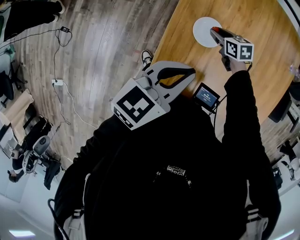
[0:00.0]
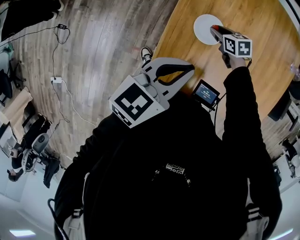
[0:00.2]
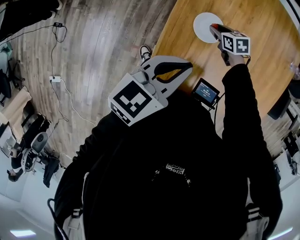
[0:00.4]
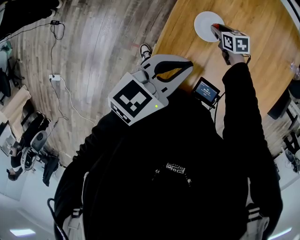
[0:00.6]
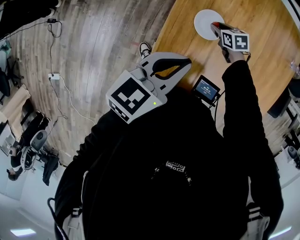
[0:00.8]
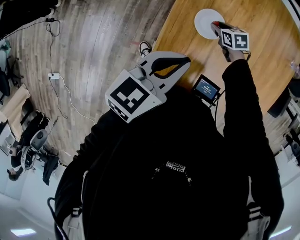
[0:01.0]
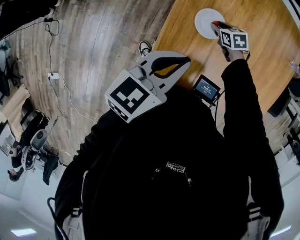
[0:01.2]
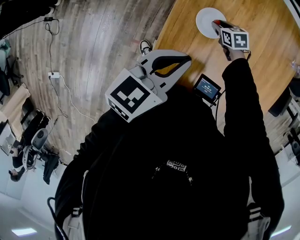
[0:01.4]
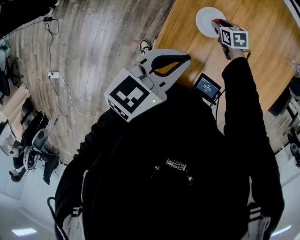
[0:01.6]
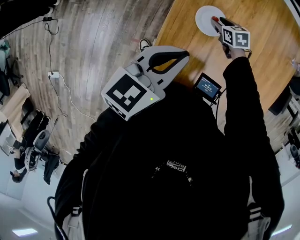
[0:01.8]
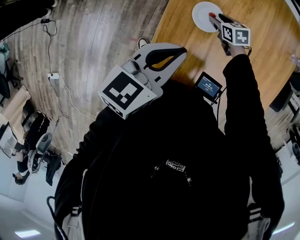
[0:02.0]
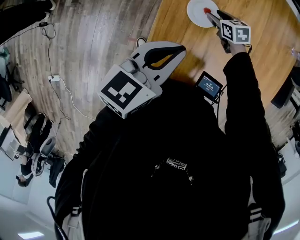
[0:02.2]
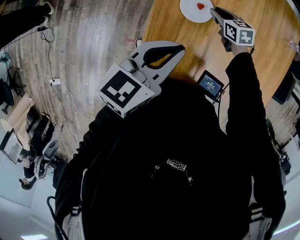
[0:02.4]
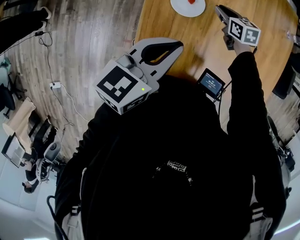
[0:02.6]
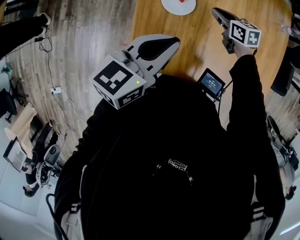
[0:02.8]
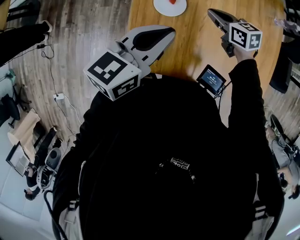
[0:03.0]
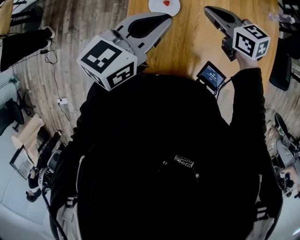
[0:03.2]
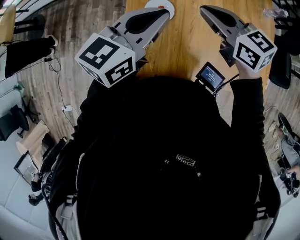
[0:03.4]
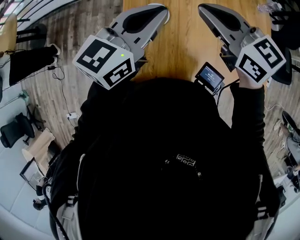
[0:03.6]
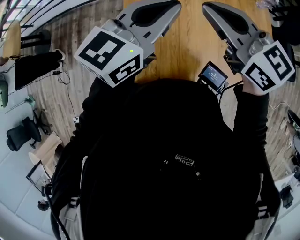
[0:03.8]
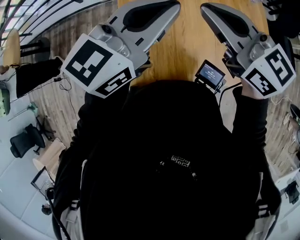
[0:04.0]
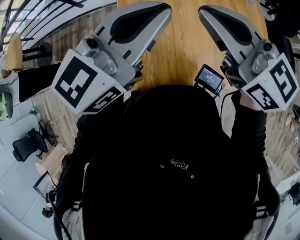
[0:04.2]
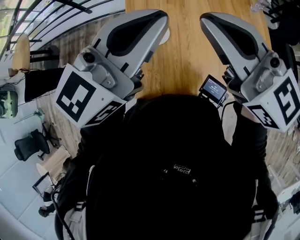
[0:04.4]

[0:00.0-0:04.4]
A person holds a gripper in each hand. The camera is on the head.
0:00.0 to 0:01.4: The right gripper ends up approximately 5 cm from where it was.
0:01.4 to 0:03.0: The right gripper goes some 10 cm upward, swivels approximately 30 degrees, and closes.
0:03.0 to 0:04.4: The right gripper travels upward by roughly 35 cm, and tilts its fingers approximately 40 degrees upward, while the left gripper shifts some 25 cm upward, forward and to the right, and turns by about 30 degrees.

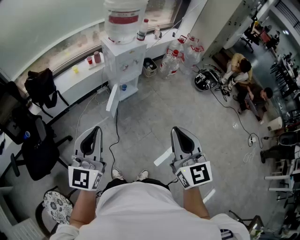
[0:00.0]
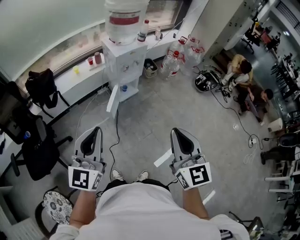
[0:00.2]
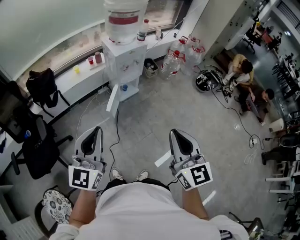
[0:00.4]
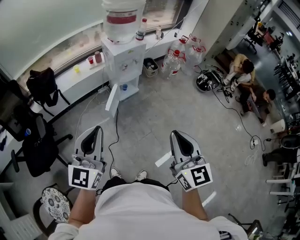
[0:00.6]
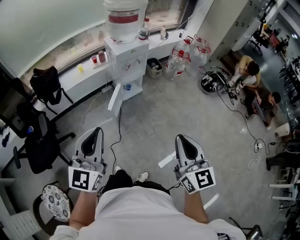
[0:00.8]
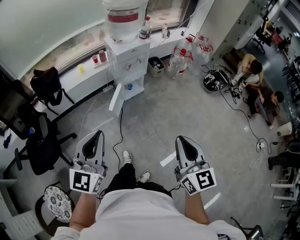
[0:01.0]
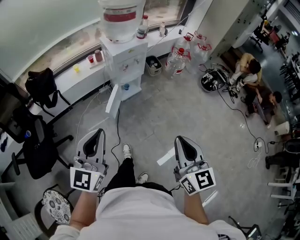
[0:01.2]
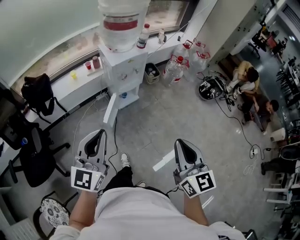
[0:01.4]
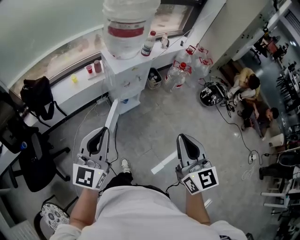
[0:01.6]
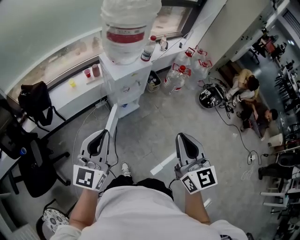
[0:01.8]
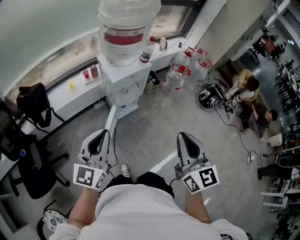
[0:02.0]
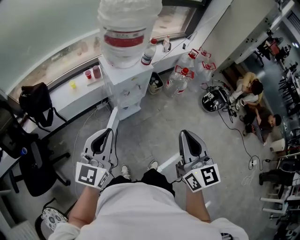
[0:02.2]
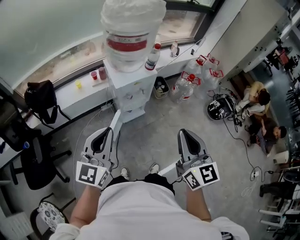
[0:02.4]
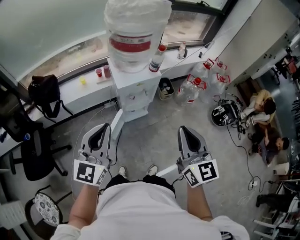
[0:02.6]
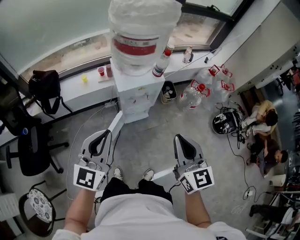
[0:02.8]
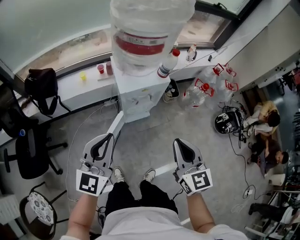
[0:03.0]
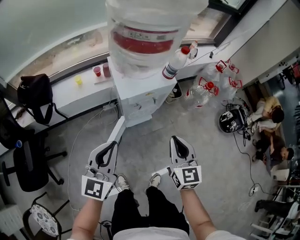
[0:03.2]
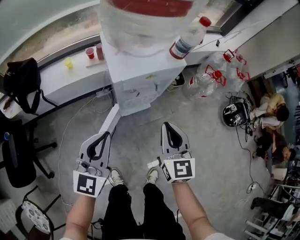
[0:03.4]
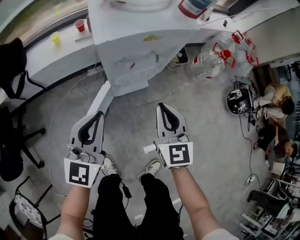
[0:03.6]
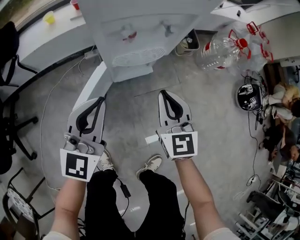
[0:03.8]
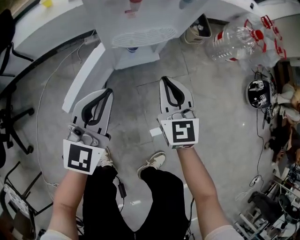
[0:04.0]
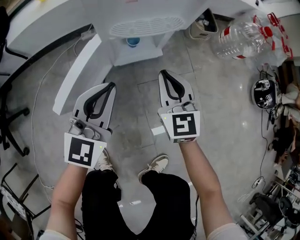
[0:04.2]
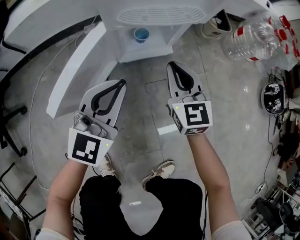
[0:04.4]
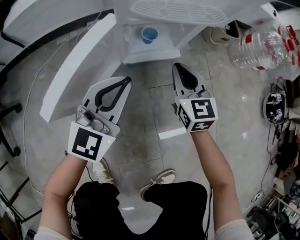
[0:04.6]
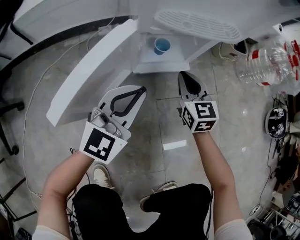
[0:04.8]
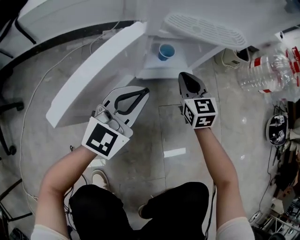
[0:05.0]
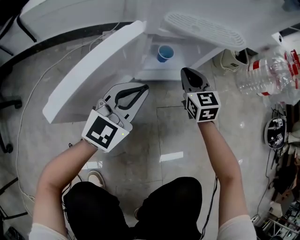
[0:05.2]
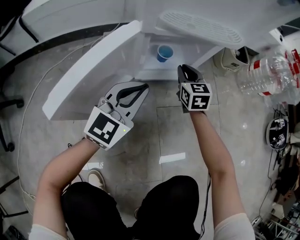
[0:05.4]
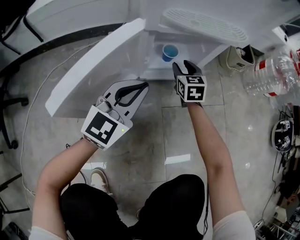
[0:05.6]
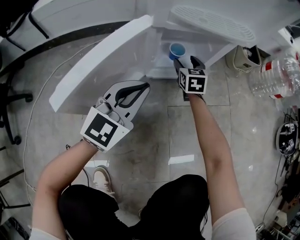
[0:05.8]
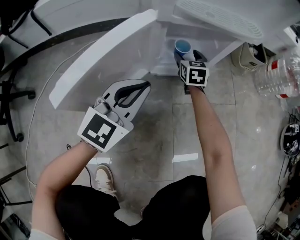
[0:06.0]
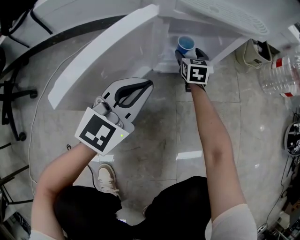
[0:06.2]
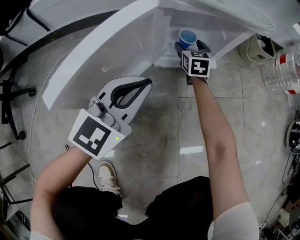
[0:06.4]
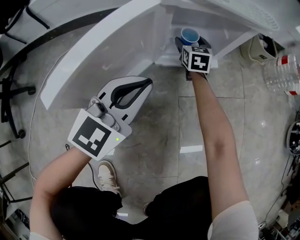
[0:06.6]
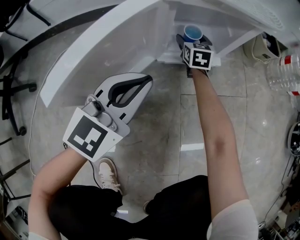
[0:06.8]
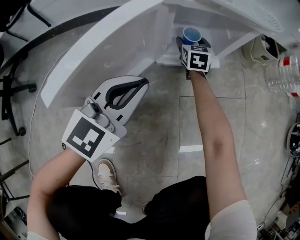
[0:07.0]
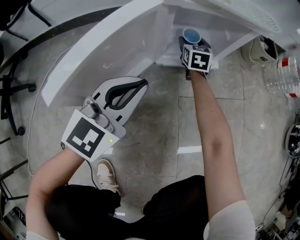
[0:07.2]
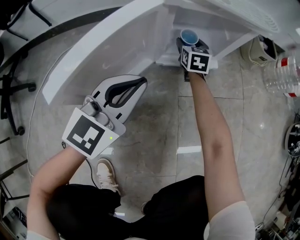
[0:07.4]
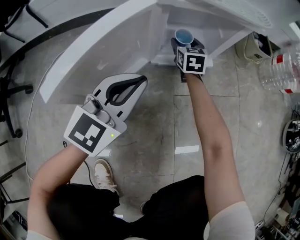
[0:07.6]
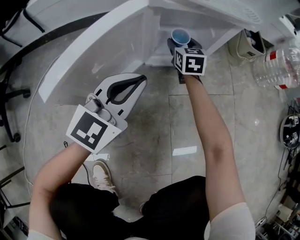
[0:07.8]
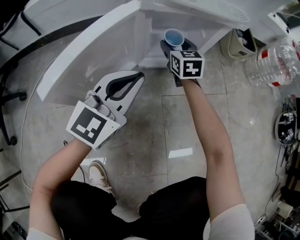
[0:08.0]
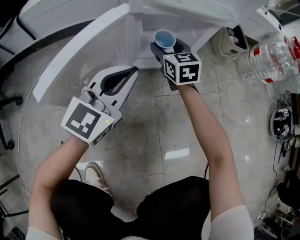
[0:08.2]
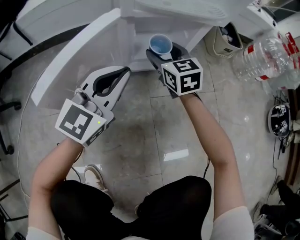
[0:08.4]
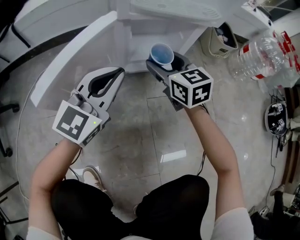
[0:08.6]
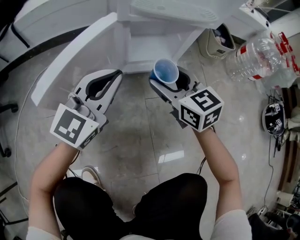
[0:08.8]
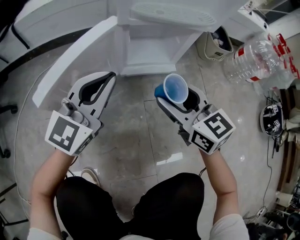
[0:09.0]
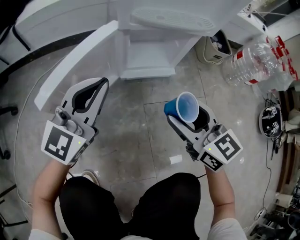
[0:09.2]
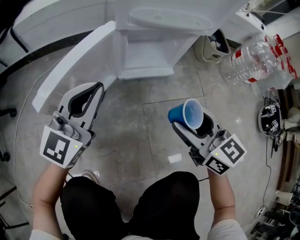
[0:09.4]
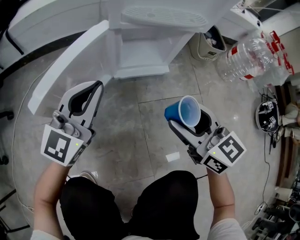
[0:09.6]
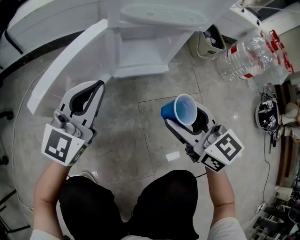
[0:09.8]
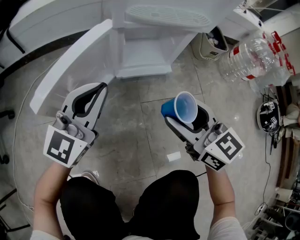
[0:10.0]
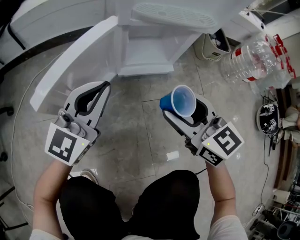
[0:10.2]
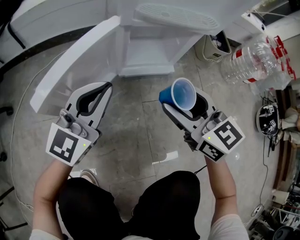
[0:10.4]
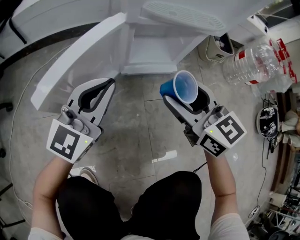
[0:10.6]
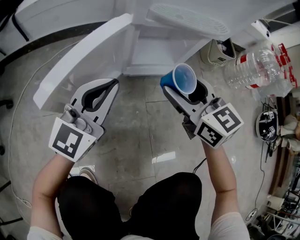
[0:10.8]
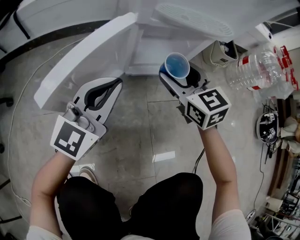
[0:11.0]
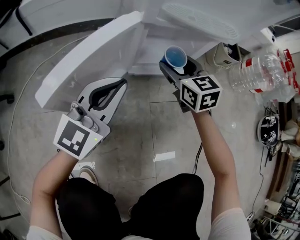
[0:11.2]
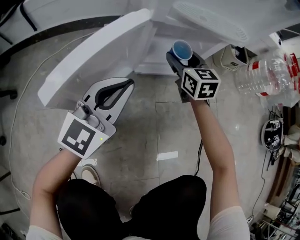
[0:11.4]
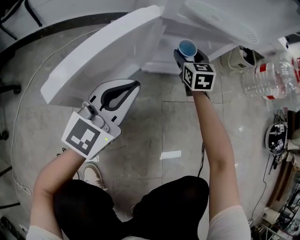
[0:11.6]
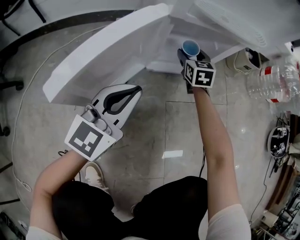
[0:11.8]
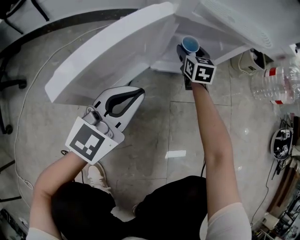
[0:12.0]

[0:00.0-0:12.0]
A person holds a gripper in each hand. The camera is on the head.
0:00.0 to 0:01.6: The grippers both shift forward by approximately 20 cm.
0:01.6 to 0:03.0: The right gripper shifts roughly 25 cm forward and downward; the left gripper travels forward by about 15 cm.
0:03.0 to 0:04.4: The grippers both shift downward by some 60 cm.
0:04.4 to 0:06.0: The right gripper heads downward and forward, covering roughly 30 cm, and opens; the left gripper travels downward by approximately 10 cm.
0:06.0 to 0:07.6: The grippers move only a little.
0:07.6 to 0:09.0: The left gripper goes some 5 cm upward, while the right gripper travels backward and upward by approximately 30 cm, and changes its angle by about 30 degrees.
0:10.4 to 0:12.0: The right gripper is displaced forward and downward by roughly 35 cm, and changes its angle by approximately 20 degrees; the left gripper goes roughly 5 cm downward.

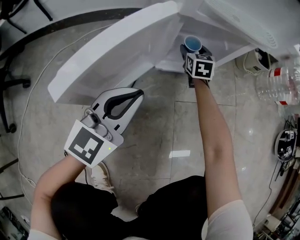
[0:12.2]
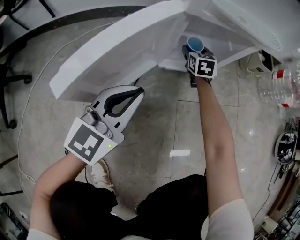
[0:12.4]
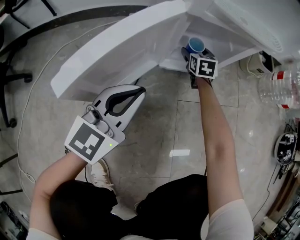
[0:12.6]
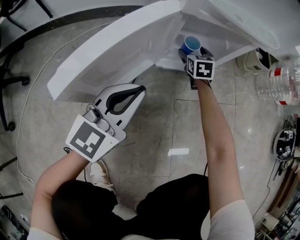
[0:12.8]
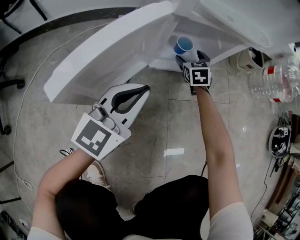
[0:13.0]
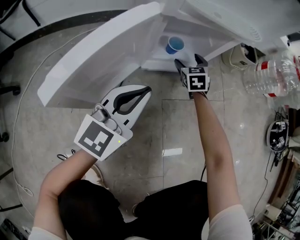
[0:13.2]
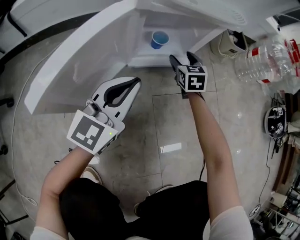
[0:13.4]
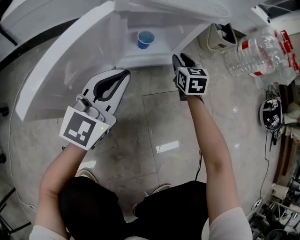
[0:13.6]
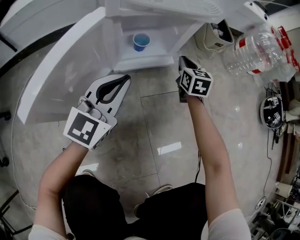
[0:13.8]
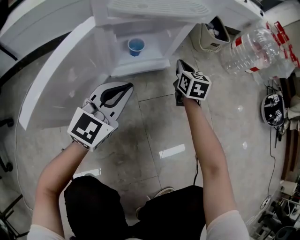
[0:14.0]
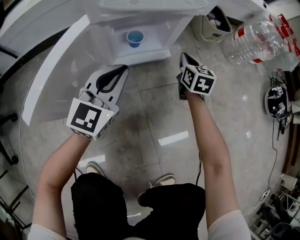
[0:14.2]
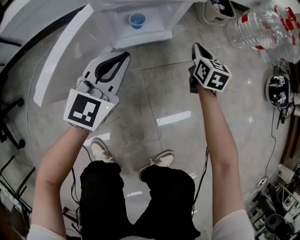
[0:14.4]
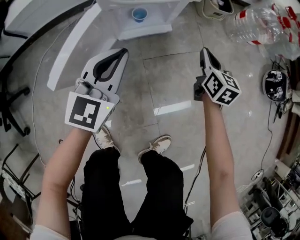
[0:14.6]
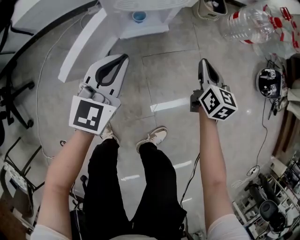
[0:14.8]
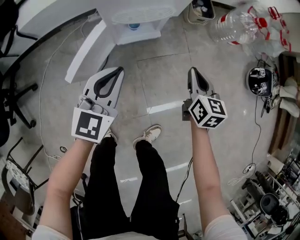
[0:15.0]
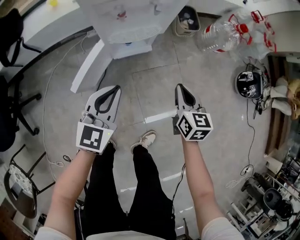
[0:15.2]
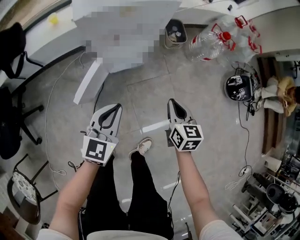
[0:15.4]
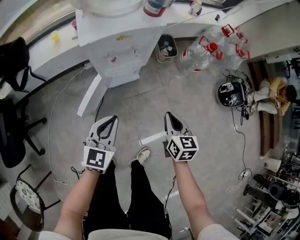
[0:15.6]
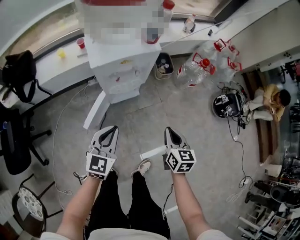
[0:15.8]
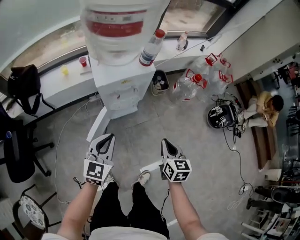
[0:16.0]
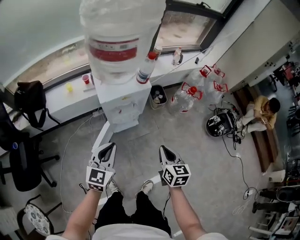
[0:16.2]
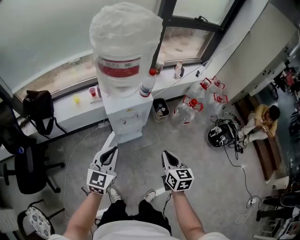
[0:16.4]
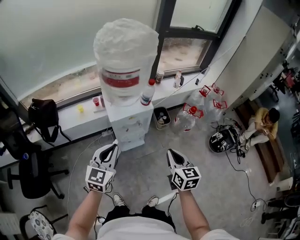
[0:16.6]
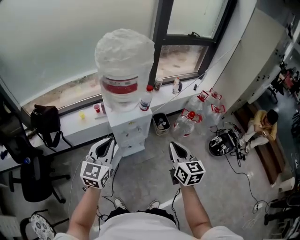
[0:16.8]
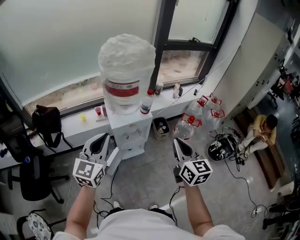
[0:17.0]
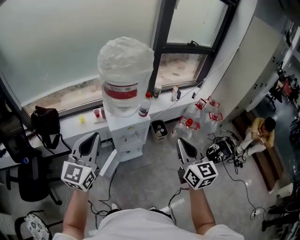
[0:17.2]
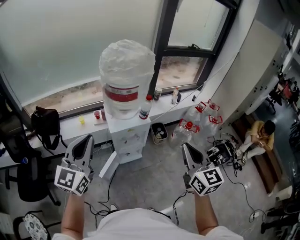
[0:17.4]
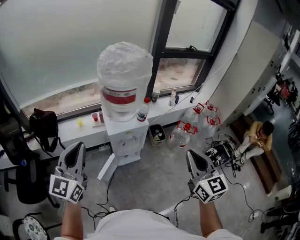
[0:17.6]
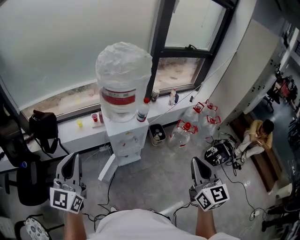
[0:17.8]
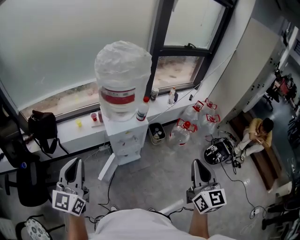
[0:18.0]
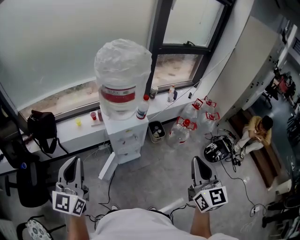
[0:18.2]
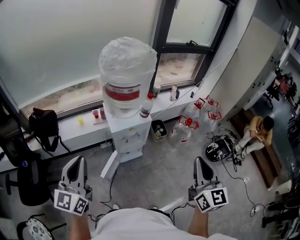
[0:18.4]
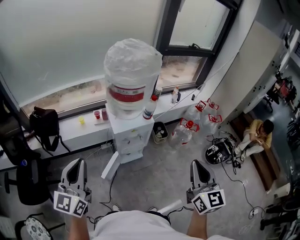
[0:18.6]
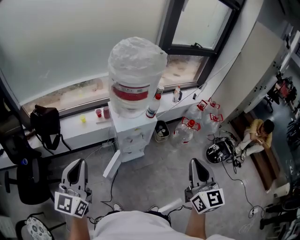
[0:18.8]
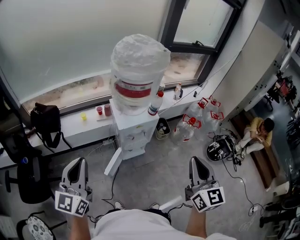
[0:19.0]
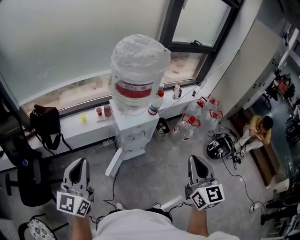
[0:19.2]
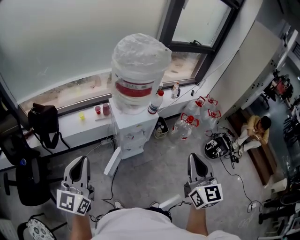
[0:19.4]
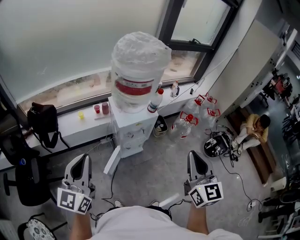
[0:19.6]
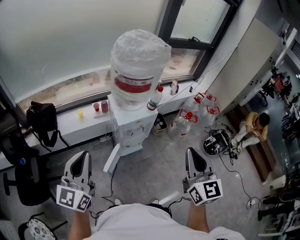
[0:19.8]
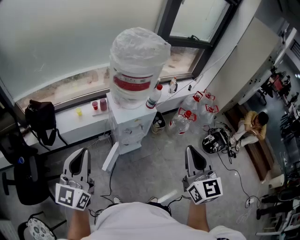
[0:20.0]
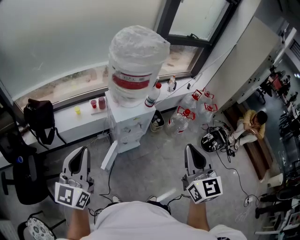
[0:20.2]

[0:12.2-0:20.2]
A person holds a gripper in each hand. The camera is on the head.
0:12.2 to 0:13.8: The left gripper goes approximately 10 cm to the right and forward; the right gripper is displaced to the right by approximately 20 cm, and closes its fingers.
0:13.8 to 0:15.4: The left gripper shifts approximately 40 cm upward, while the right gripper heads upward and backward, covering approximately 50 cm.
0:15.4 to 0:17.0: Both grippers move upward, some 50 cm. The right gripper changes its angle by approximately 30 degrees. Meanwhile the left gripper changes its angle by approximately 20 degrees.
0:17.0 to 0:18.6: The left gripper heads to the left and backward, covering about 15 cm. The right gripper is displaced backward and upward by roughly 10 cm.
0:18.6 to 0:20.2: The right gripper is displaced to the left by some 10 cm.
